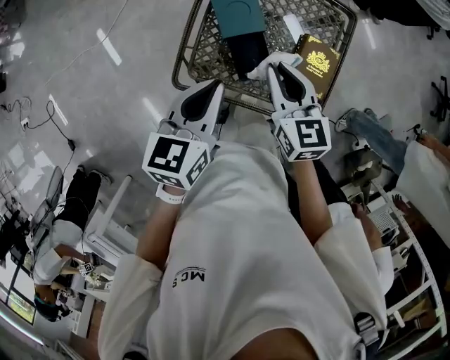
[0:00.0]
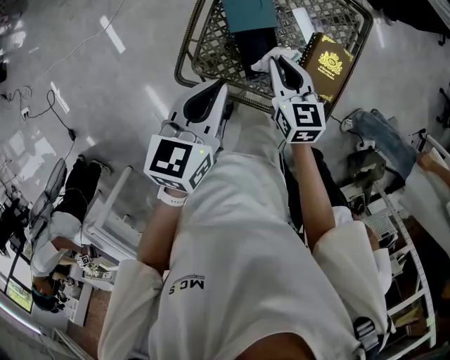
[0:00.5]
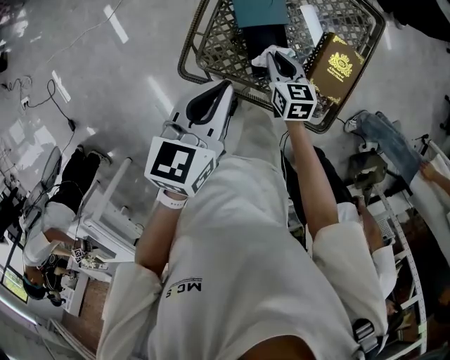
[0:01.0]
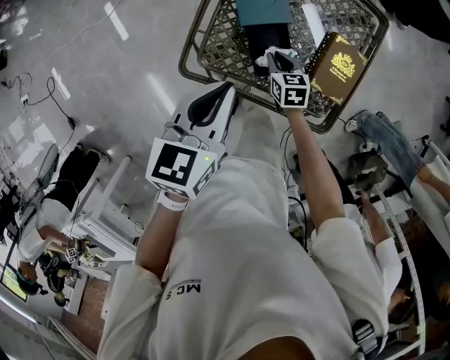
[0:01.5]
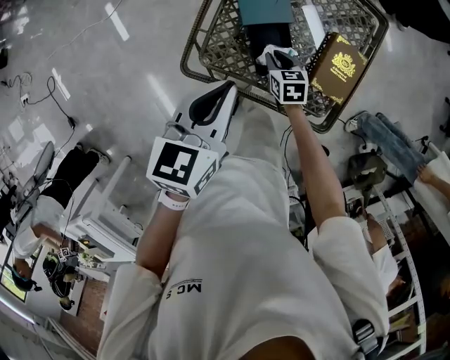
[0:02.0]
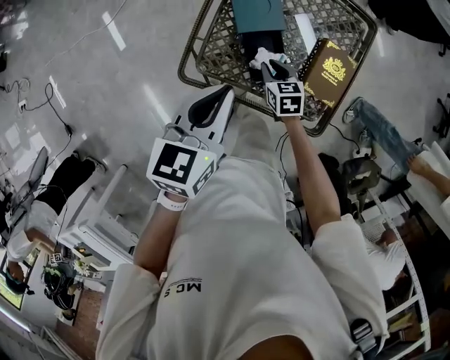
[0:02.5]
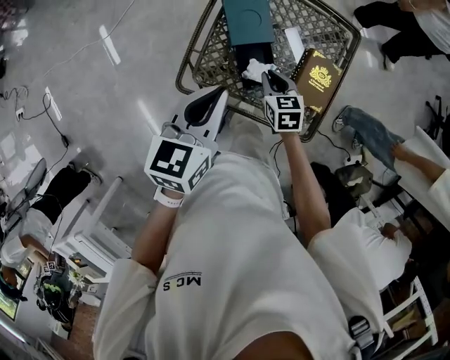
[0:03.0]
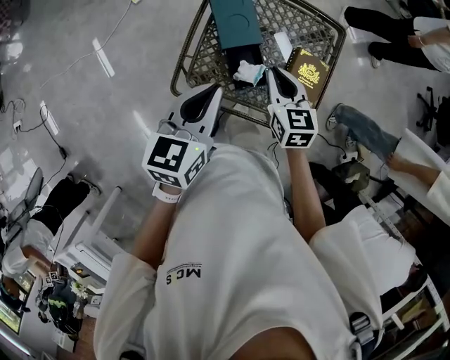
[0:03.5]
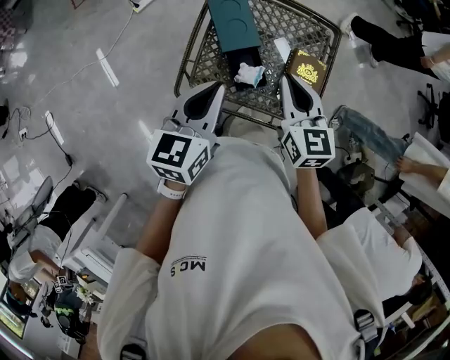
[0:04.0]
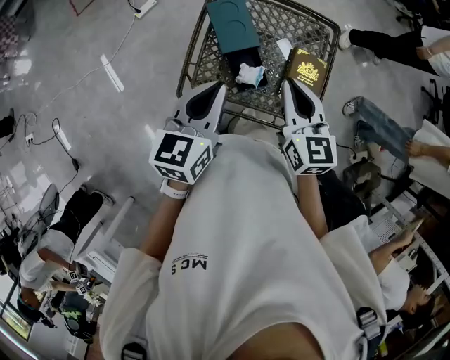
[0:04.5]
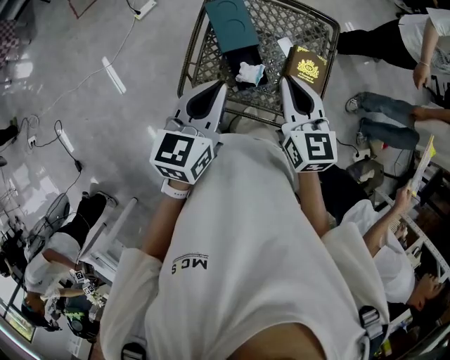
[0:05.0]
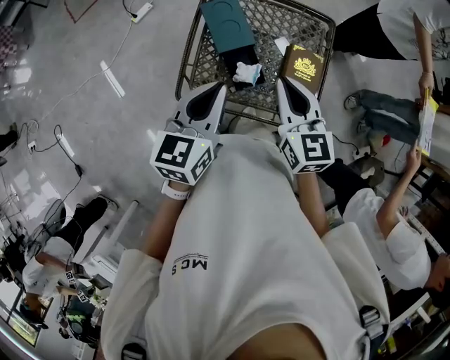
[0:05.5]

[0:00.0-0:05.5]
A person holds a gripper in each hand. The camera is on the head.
0:00.0 to 0:02.0: The right gripper shifts some 30 cm downward, and turns by about 30 degrees.
0:02.0 to 0:03.5: The left gripper is displaced upward by about 5 cm; the right gripper heads upward, covering roughly 25 cm, and swivels roughly 20 degrees.
0:03.5 to 0:05.5: The right gripper heads upward, covering roughly 10 cm.

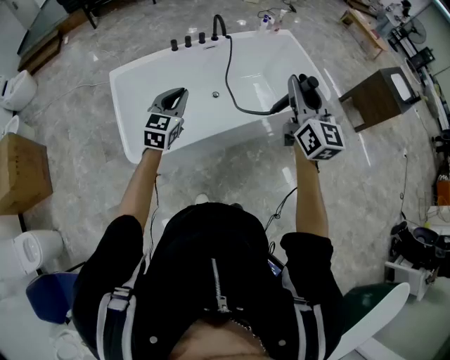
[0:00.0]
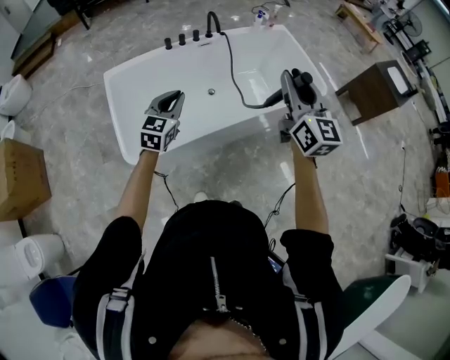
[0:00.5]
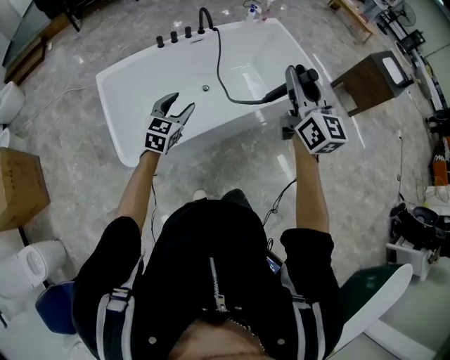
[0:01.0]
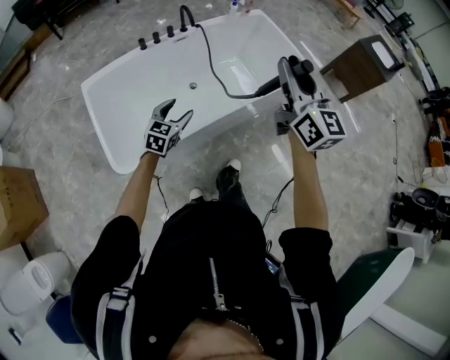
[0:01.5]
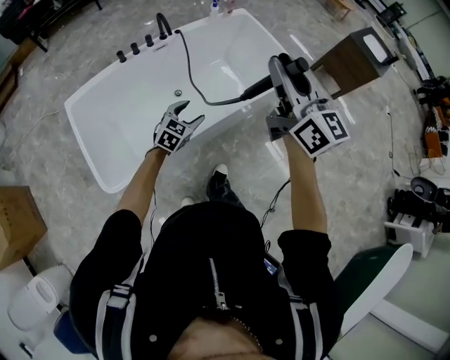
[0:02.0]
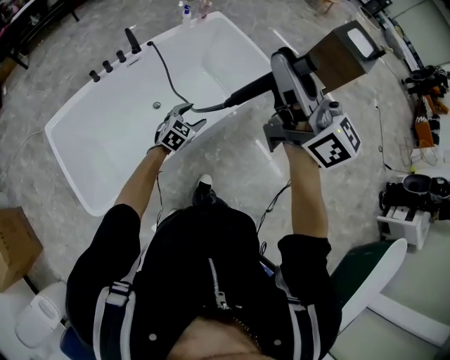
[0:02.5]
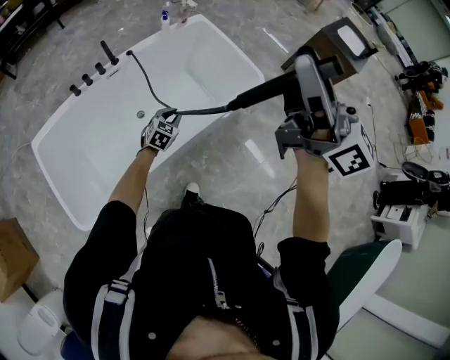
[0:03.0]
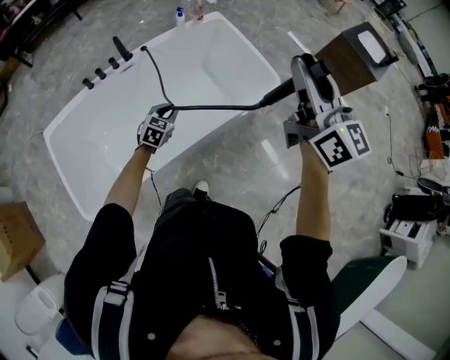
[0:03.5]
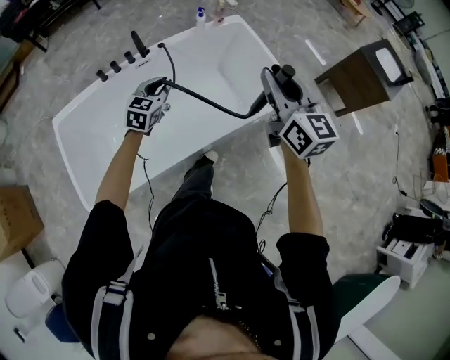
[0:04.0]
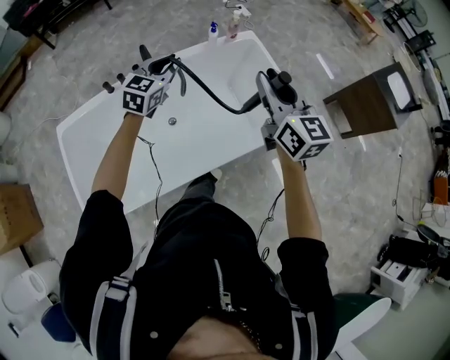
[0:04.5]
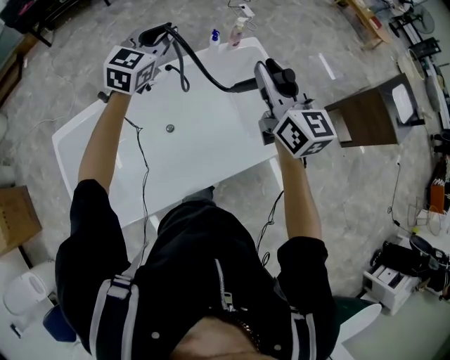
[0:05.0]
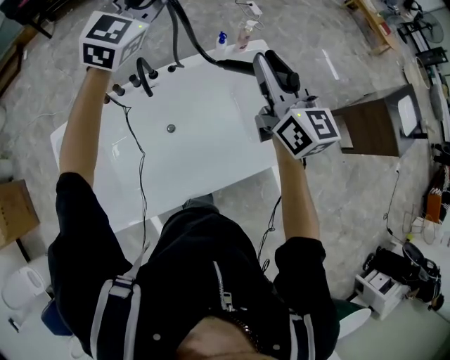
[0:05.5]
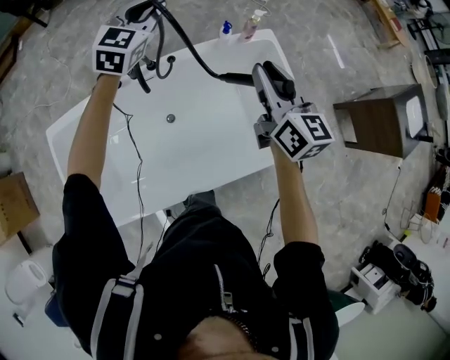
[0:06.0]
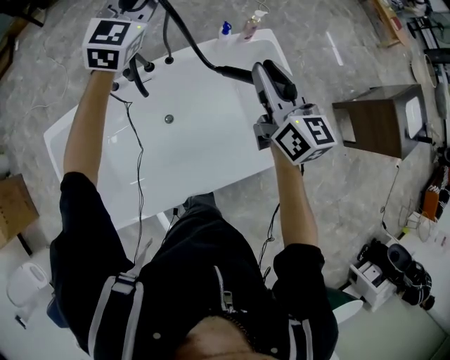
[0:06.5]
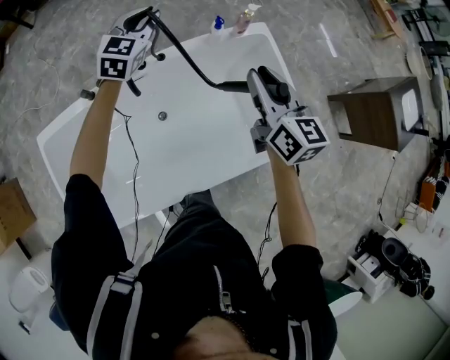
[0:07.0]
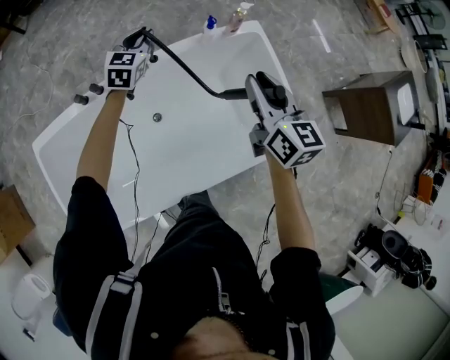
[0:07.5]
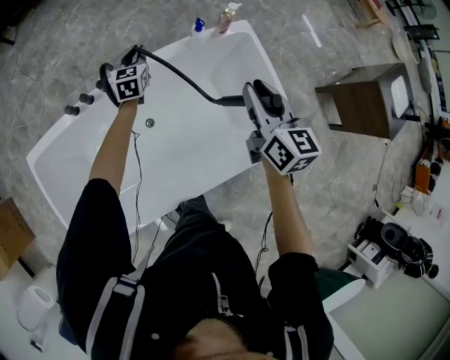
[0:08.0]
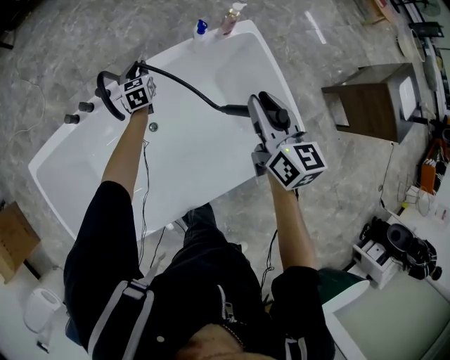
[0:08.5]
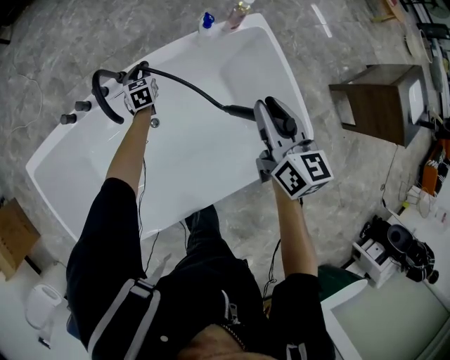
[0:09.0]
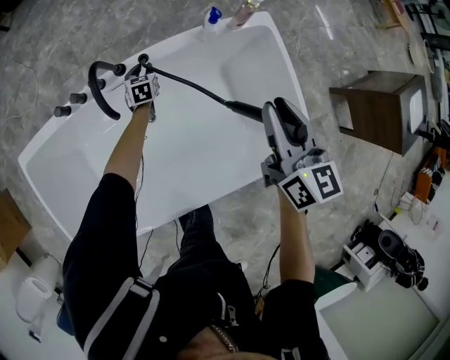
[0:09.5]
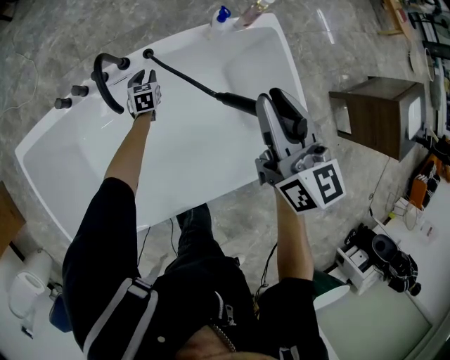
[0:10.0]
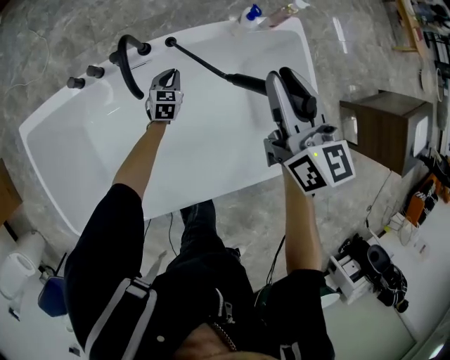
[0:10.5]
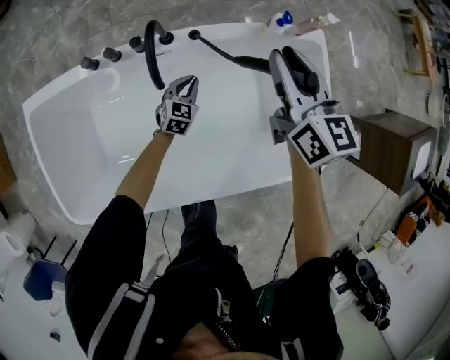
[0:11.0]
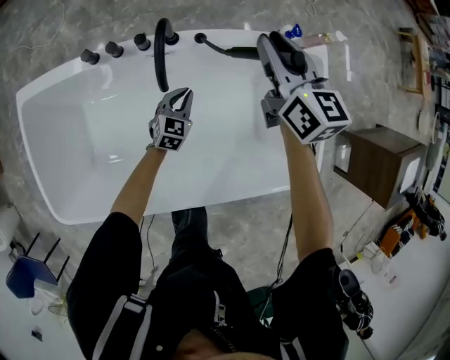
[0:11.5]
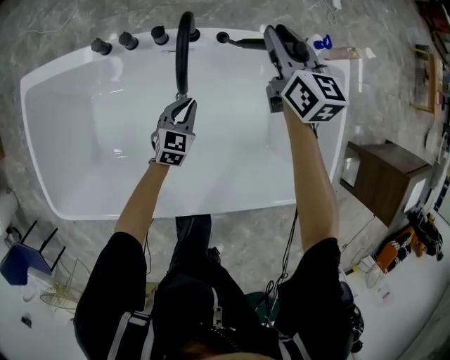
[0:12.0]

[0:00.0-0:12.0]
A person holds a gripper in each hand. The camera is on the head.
0:00.0 to 0:02.0: The left gripper shifts some 25 cm to the right, downward and forward, changes its angle by about 30 degrees, and opens. The right gripper moves forward and to the right, approximately 10 cm.
0:02.0 to 0:04.0: The right gripper moves forward and to the right, about 25 cm; the left gripper is displaced forward by some 25 cm, and closes.
0:04.0 to 0:06.0: The left gripper is displaced forward and upward by some 40 cm. Meanwhile the right gripper heads forward, covering some 30 cm.
0:06.0 to 0:08.0: The left gripper travels downward by approximately 25 cm, and swivels some 30 degrees; the right gripper is displaced downward by approximately 5 cm.
0:08.0 to 0:10.0: The right gripper shifts by roughly 5 cm; the left gripper travels downward by about 25 cm, and rotates approximately 20 degrees.
0:10.0 to 0:12.0: The left gripper shifts about 15 cm backward. The right gripper goes roughly 30 cm forward, downward and to the left.

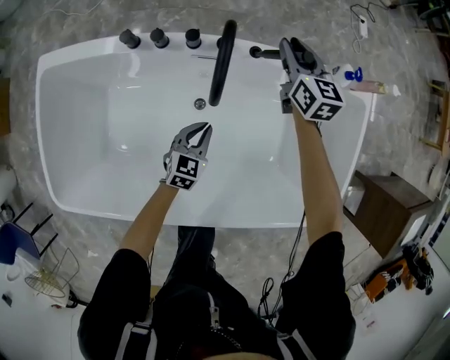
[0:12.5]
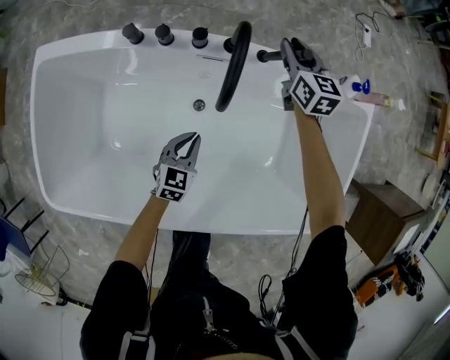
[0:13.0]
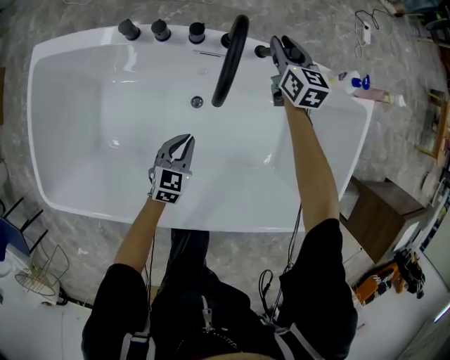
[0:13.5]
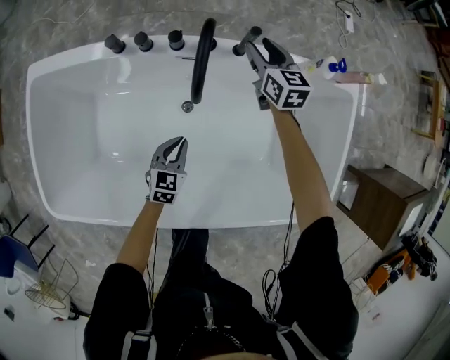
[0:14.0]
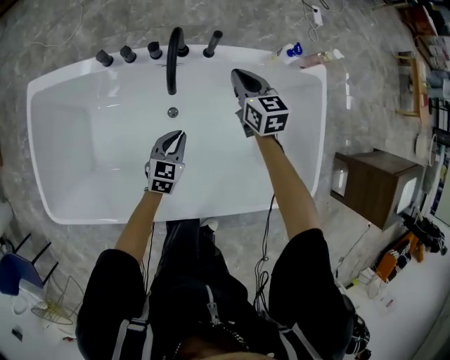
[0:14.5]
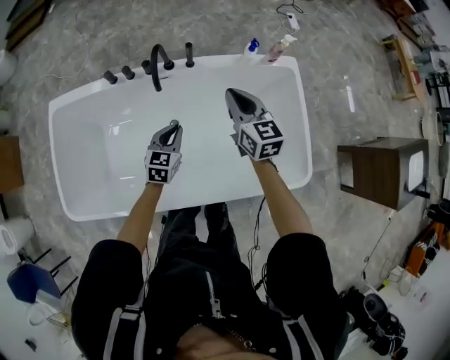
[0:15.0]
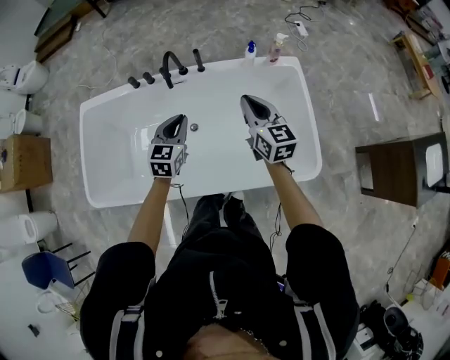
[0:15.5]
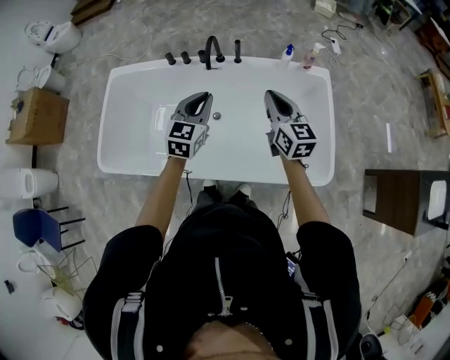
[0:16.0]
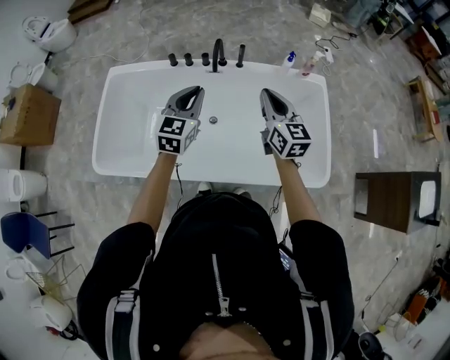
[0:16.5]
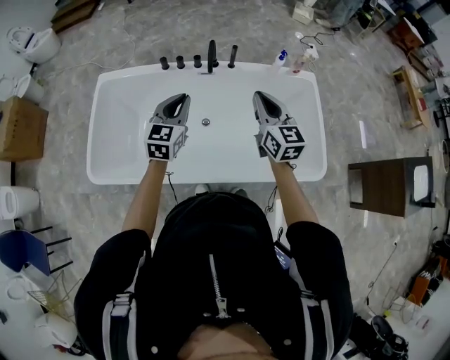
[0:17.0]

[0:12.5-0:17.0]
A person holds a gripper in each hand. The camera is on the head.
0:12.5 to 0:14.5: The right gripper moves backward, roughly 15 cm, and closes. The left gripper goes some 5 cm upward.
0:14.5 to 0:17.0: The left gripper goes about 35 cm upward, and swivels some 20 degrees; the right gripper is displaced backward and upward by some 40 cm, and swivels approximately 20 degrees.

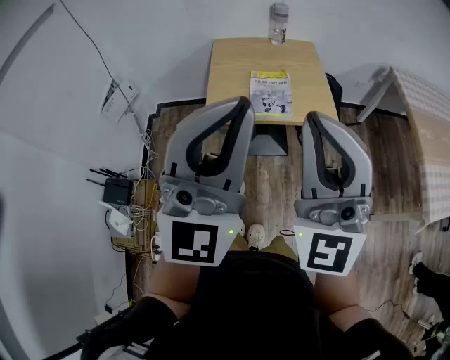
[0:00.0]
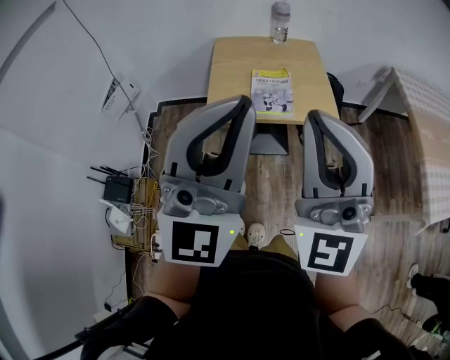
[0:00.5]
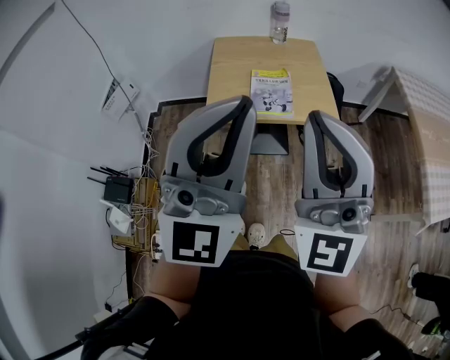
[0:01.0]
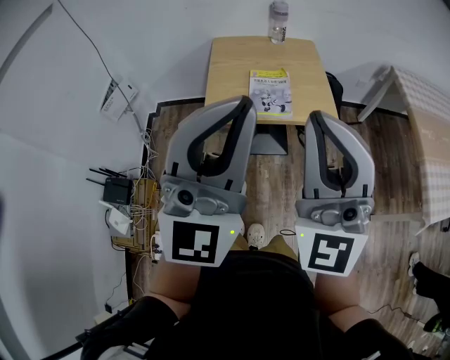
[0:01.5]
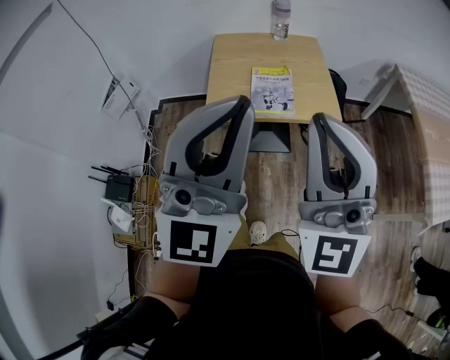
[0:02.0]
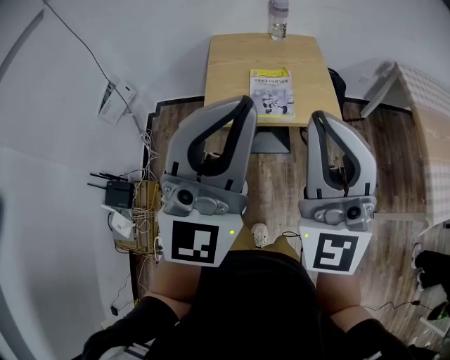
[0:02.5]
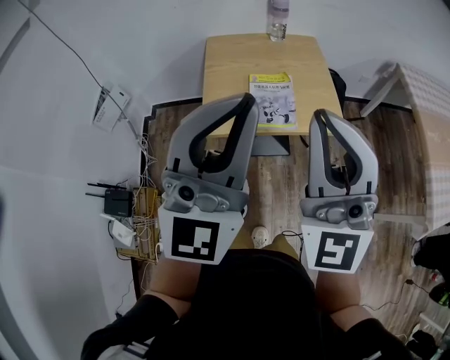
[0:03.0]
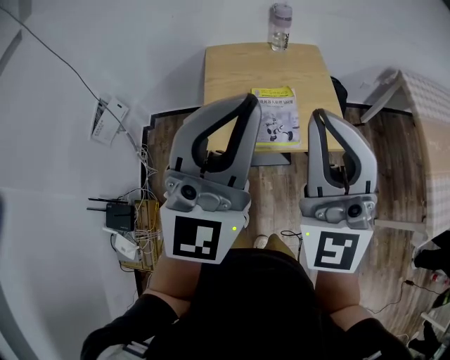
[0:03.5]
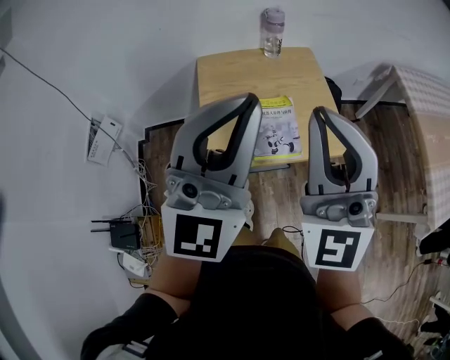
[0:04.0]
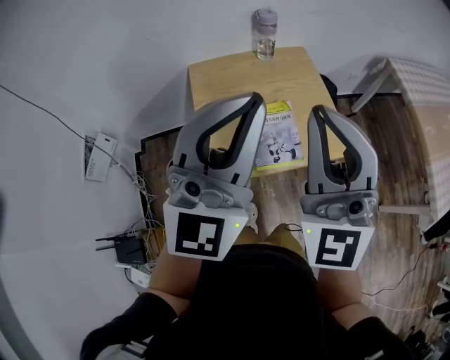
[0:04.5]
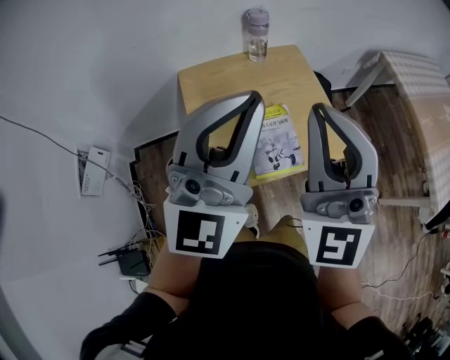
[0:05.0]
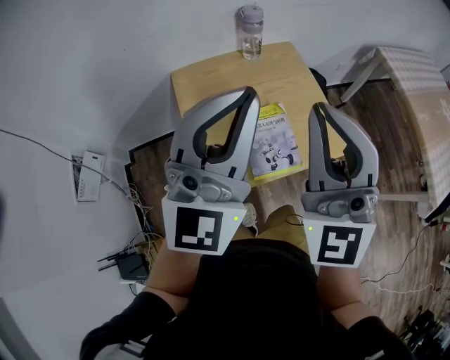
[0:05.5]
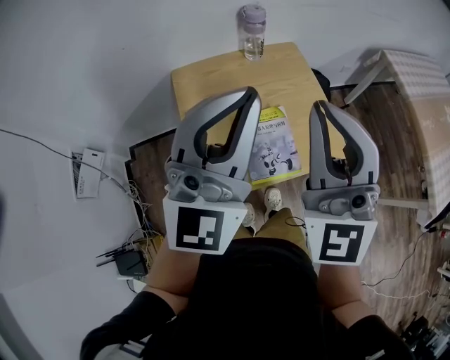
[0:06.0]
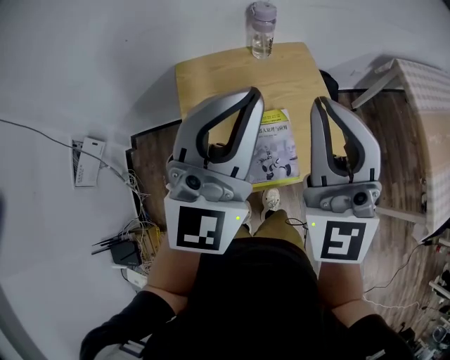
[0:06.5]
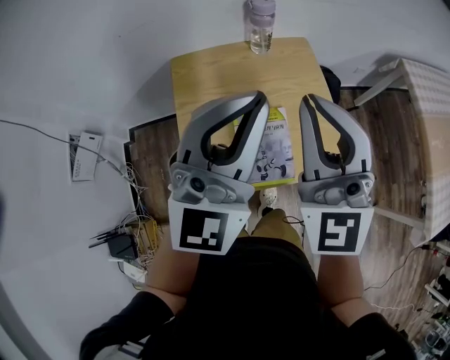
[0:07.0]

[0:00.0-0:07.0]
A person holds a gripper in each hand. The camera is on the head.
0:00.0 to 0:02.0: The grippers stay close to where they were, moving slightly.
0:02.0 to 0:03.5: The grippers both shift forward by roughly 15 cm.
0:03.5 to 0:05.0: Both grippers move forward, about 15 cm.
0:05.0 to 0:07.0: Both grippers move forward and downward, some 10 cm.
